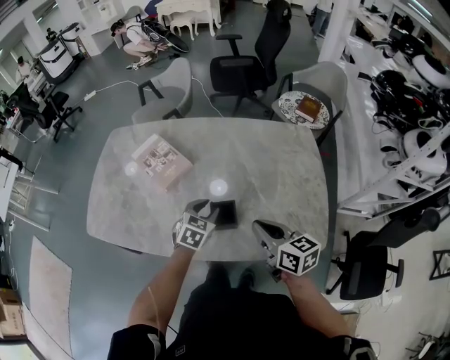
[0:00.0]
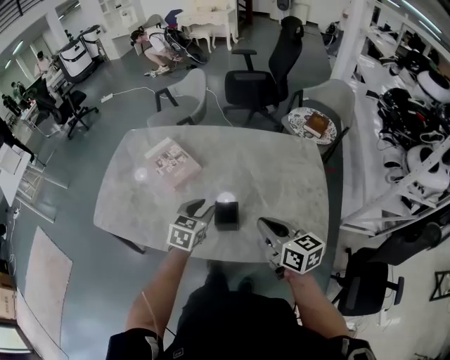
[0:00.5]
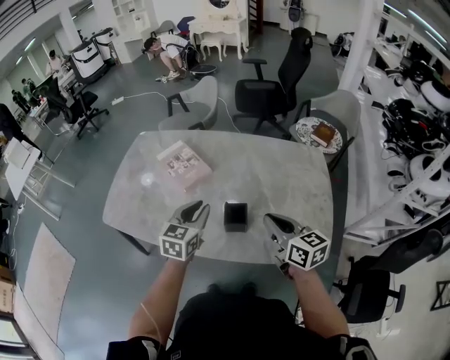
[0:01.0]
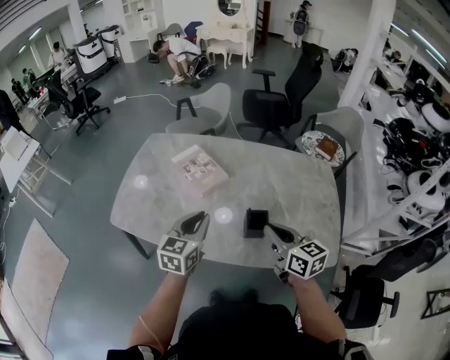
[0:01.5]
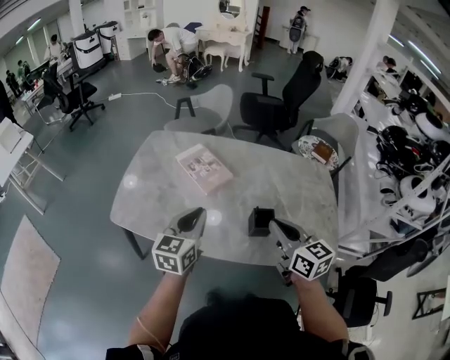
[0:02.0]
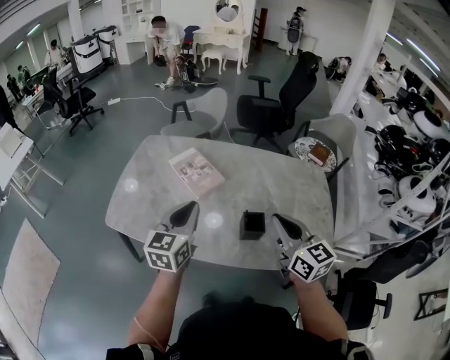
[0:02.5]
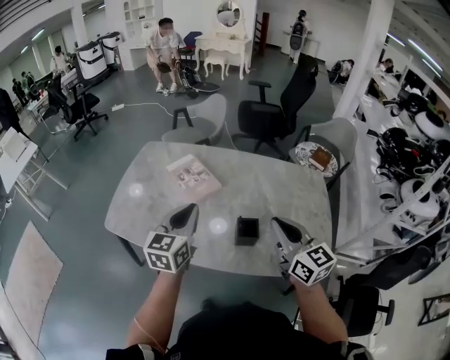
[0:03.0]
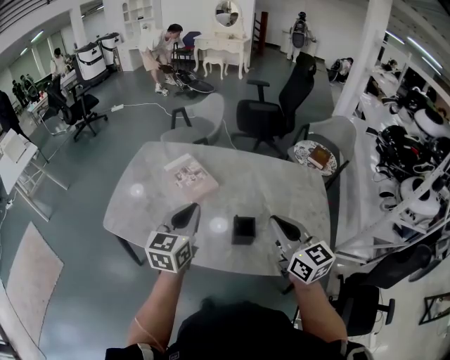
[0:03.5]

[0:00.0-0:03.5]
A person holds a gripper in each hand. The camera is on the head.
0:00.0 to 0:02.0: The left gripper travels to the left and upward by roughly 30 cm, angles its fingers upward, by approximately 30 degrees, and closes its fingers. Meanwhile the right gripper moves to the left and upward, approximately 20 cm.
0:02.0 to 0:03.5: Both grippers travel together to the right, about 10 cm.

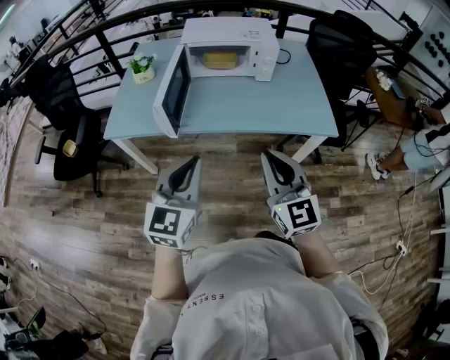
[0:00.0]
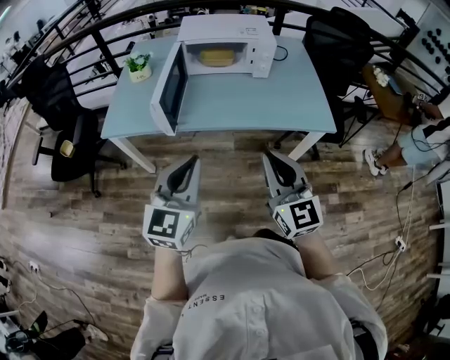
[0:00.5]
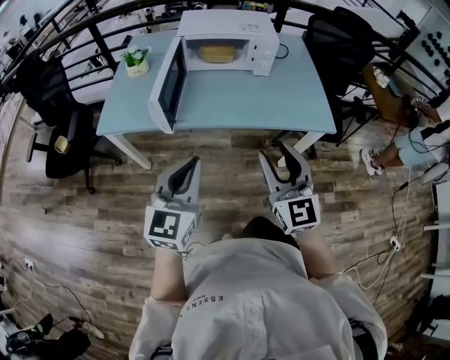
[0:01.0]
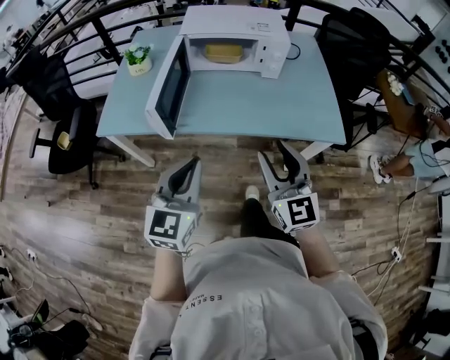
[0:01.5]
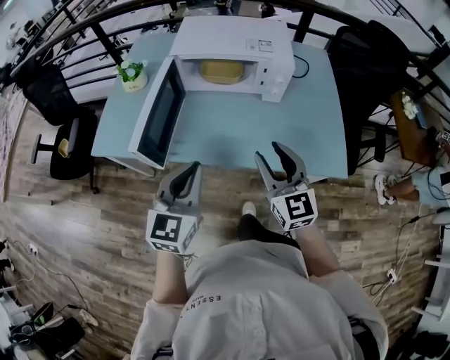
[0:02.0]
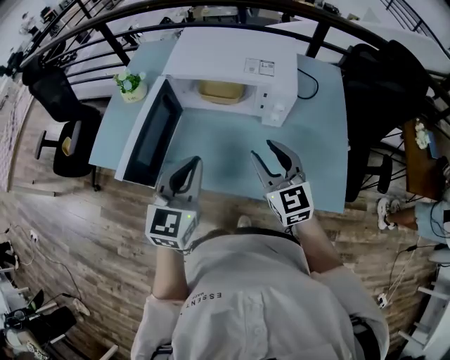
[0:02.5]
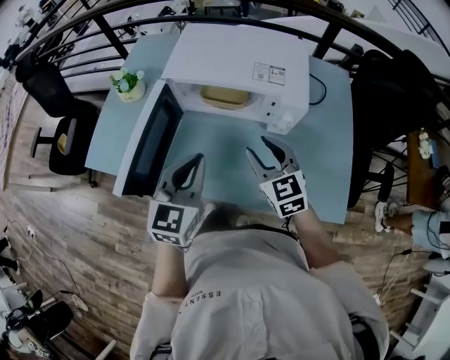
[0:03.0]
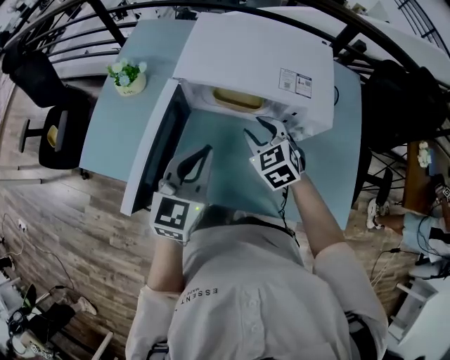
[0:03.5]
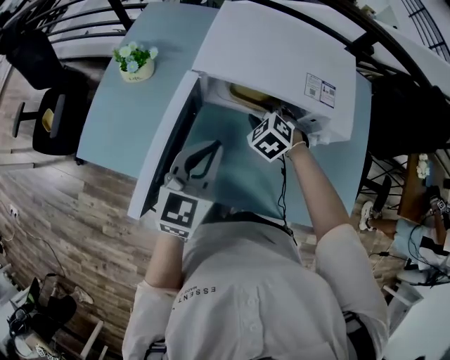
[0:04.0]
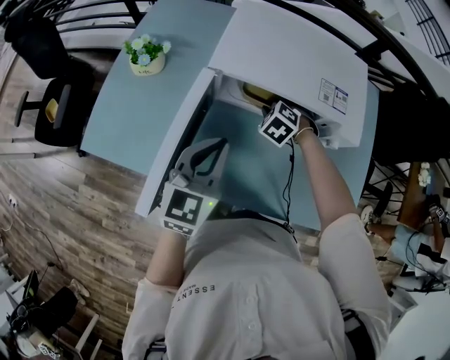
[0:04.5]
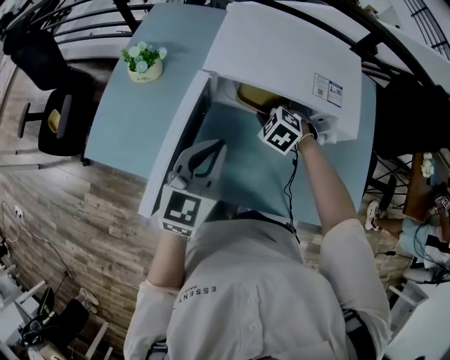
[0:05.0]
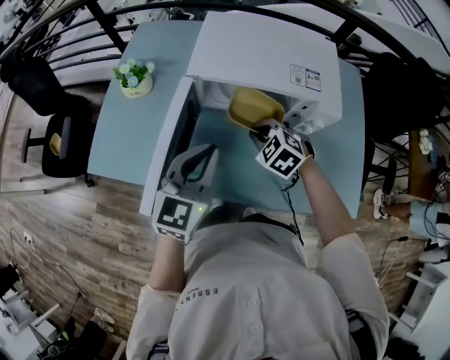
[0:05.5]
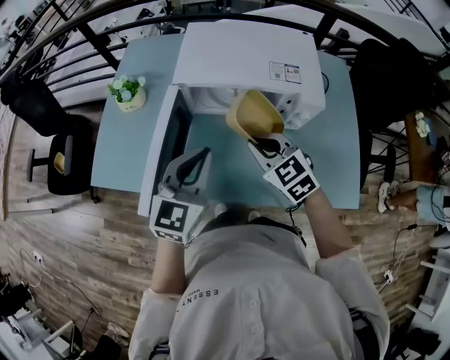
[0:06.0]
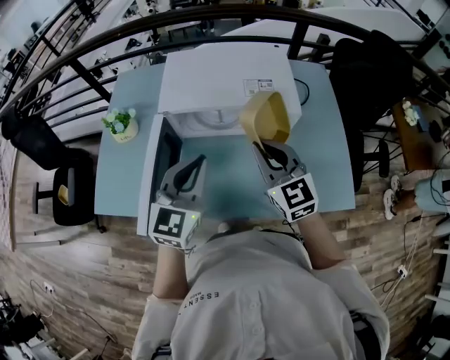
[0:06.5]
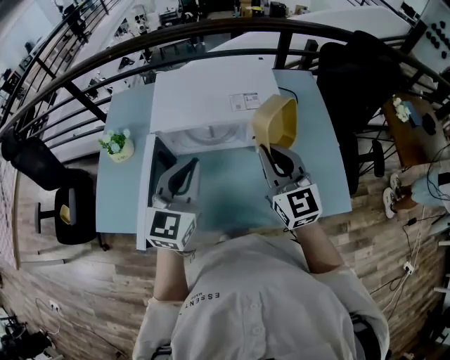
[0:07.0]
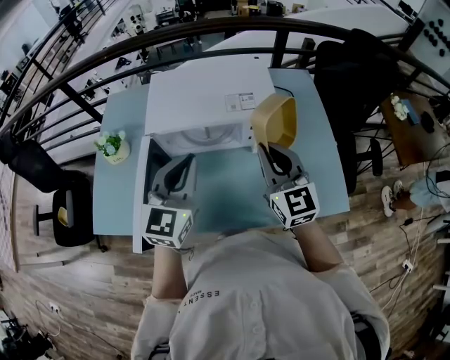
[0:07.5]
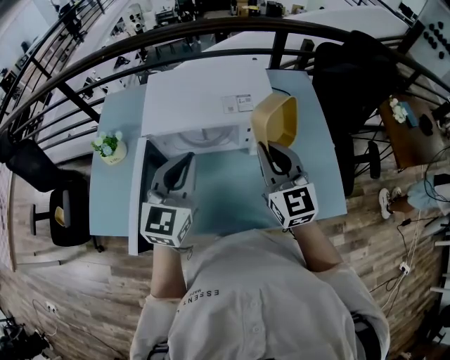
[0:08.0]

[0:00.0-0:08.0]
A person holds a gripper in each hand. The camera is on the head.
0:00.0 to 0:02.0: Both grippers move forward, some 20 cm. The right gripper opens its fingers.
0:02.0 to 0:04.0: The left gripper heads forward, covering approximately 25 cm. Meanwhile the right gripper shifts some 40 cm forward and downward, and tilts its fingers about 50 degrees downward.
0:04.0 to 0:06.0: The right gripper goes about 20 cm backward and upward, rotates some 30 degrees, and closes. The left gripper shifts by about 5 cm.
0:06.0 to 0:08.0: The right gripper shifts about 15 cm to the right and upward, and tips its fingers upward by roughly 30 degrees. Meanwhile the left gripper goes about 10 cm to the right, forward and upward.

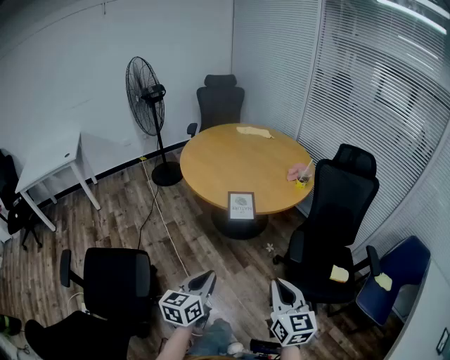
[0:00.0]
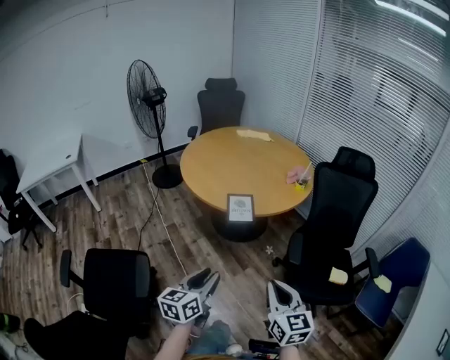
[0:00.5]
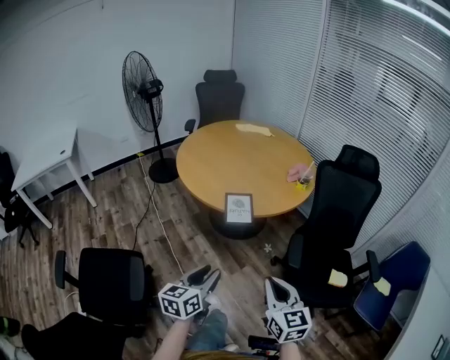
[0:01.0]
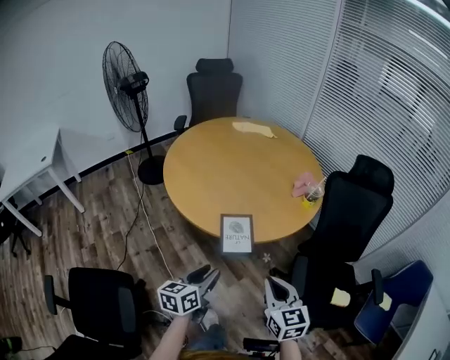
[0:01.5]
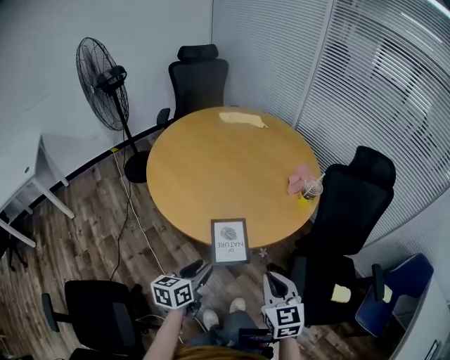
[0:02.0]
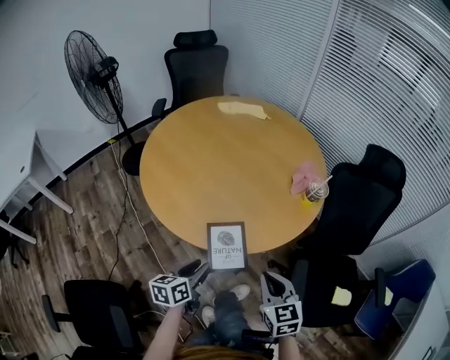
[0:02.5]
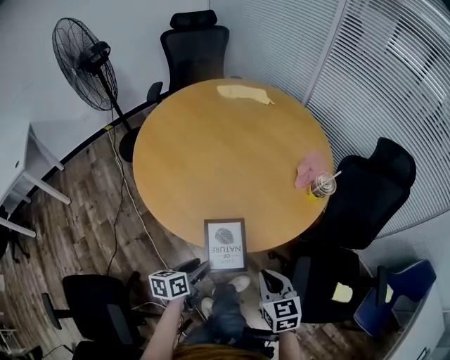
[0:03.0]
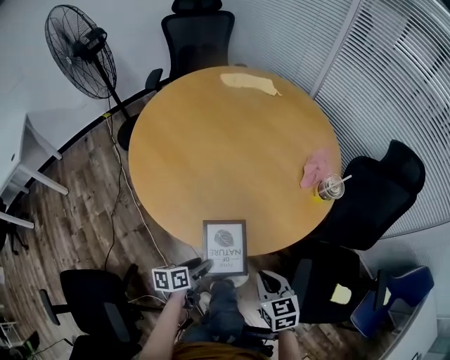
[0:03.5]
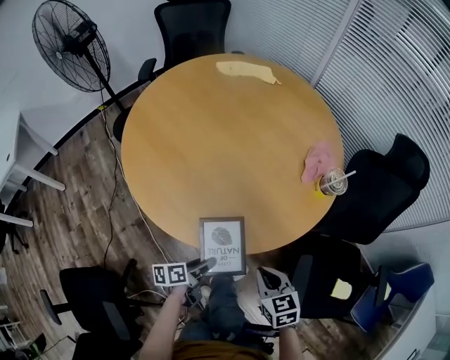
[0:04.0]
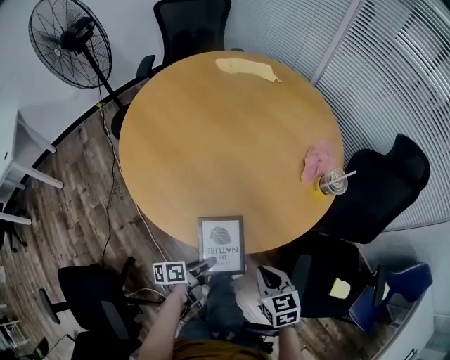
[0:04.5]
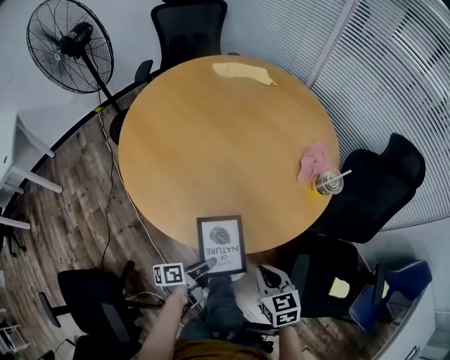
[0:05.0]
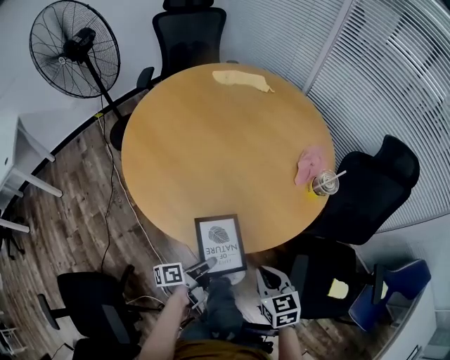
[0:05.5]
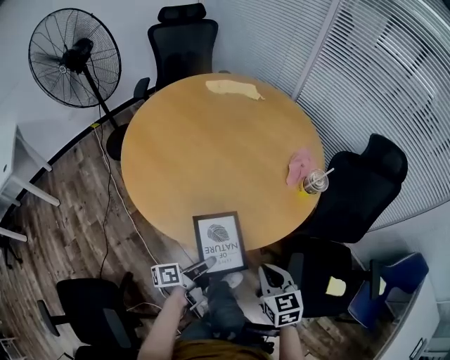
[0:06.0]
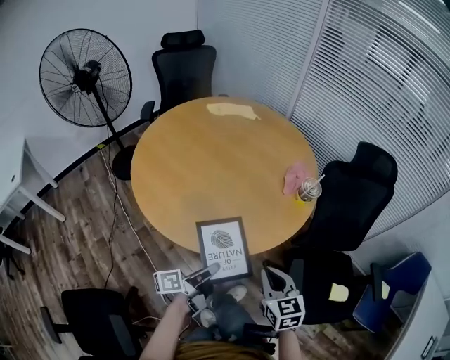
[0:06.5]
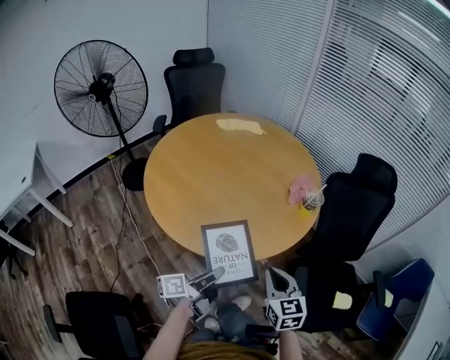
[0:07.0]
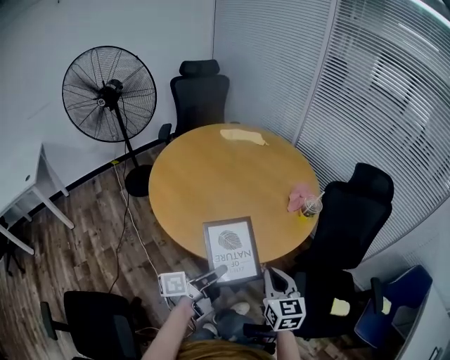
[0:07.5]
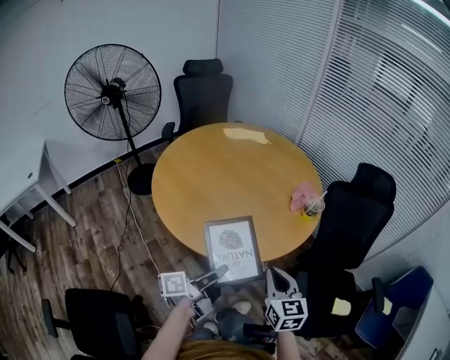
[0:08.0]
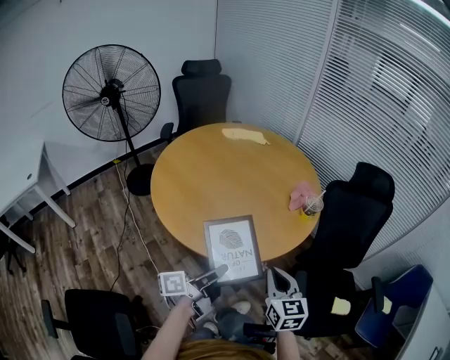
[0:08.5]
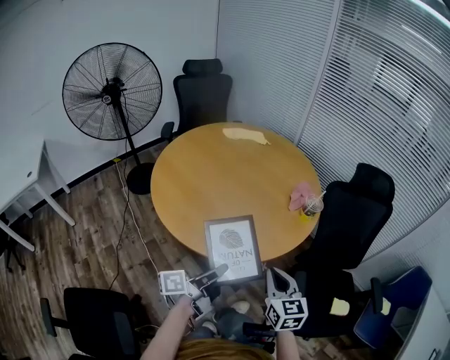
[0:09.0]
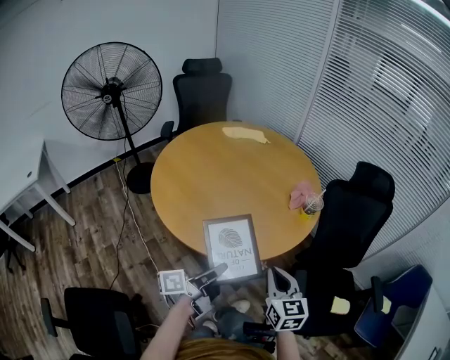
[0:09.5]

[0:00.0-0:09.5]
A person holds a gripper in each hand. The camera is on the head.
0:00.0 to 0:02.0: The grippers both shift forward by some 35 cm. The left gripper opens up.
0:02.0 to 0:04.0: The grippers both shift downward and forward by approximately 20 cm. The right gripper rotates some 20 degrees, while the left gripper turns by about 40 degrees.
0:04.0 to 0:05.5: The left gripper closes its fingers.
0:05.5 to 0:07.5: The right gripper heads upward, covering roughly 15 cm, and rotates approximately 20 degrees; the left gripper moves upward, about 20 cm, and changes its angle by approximately 30 degrees.
0:07.5 to 0:09.5: Neither gripper changes place.

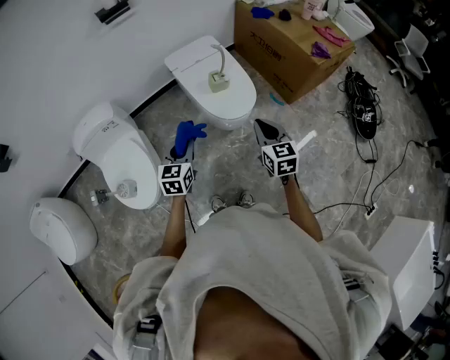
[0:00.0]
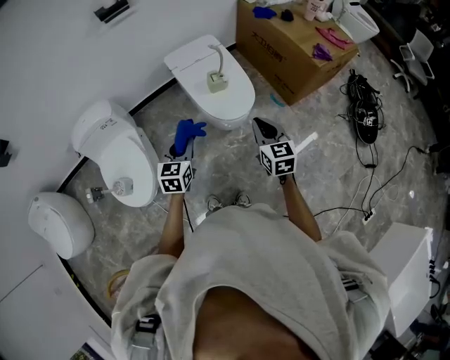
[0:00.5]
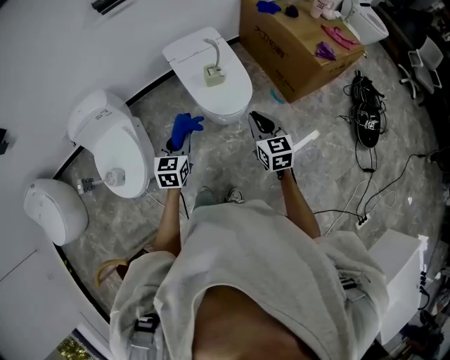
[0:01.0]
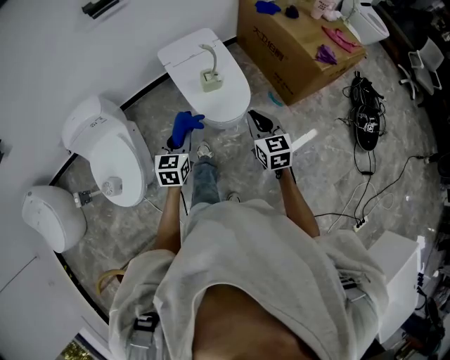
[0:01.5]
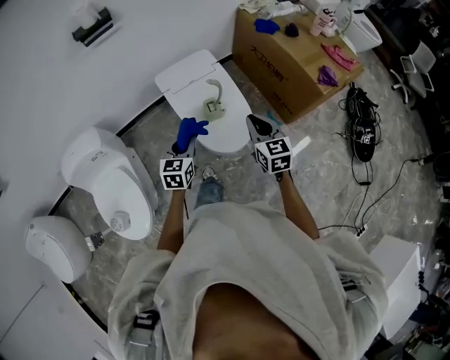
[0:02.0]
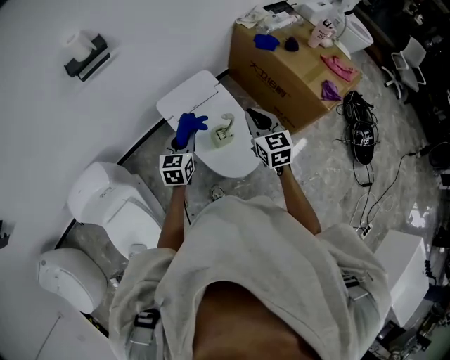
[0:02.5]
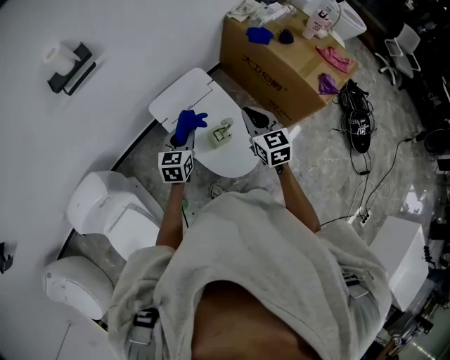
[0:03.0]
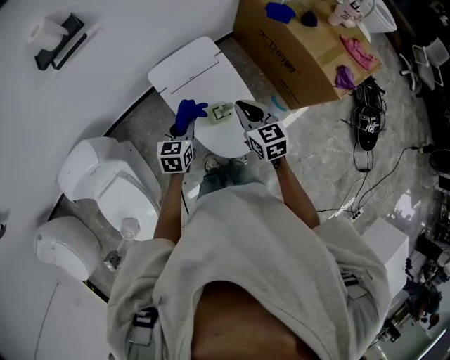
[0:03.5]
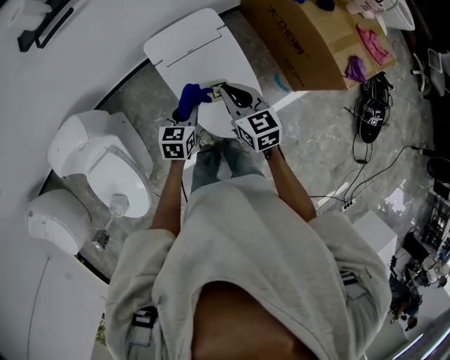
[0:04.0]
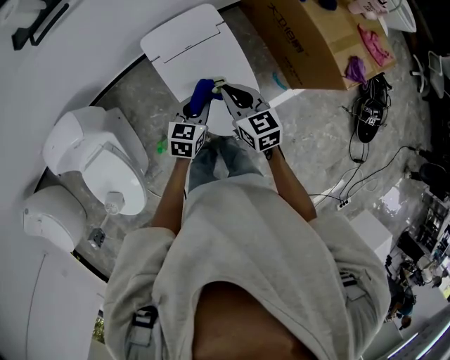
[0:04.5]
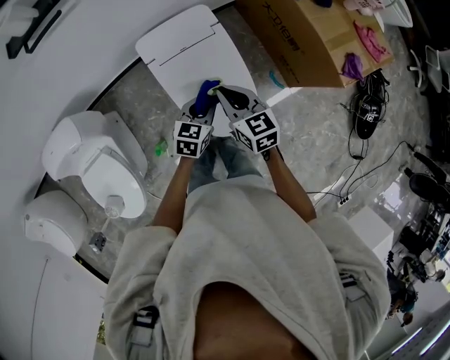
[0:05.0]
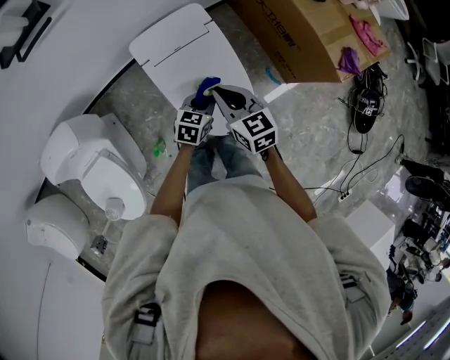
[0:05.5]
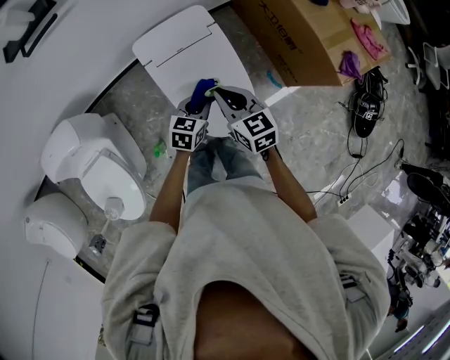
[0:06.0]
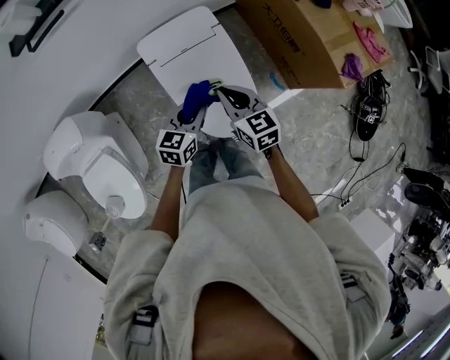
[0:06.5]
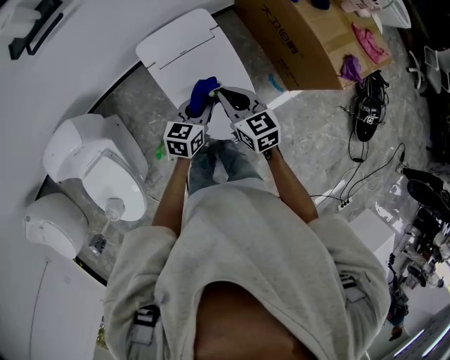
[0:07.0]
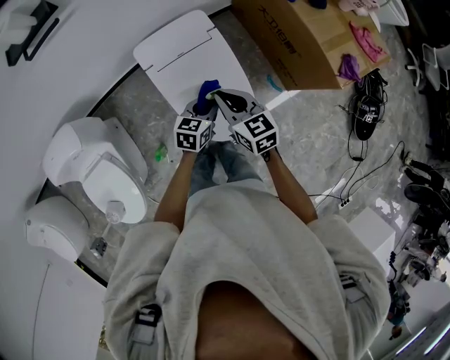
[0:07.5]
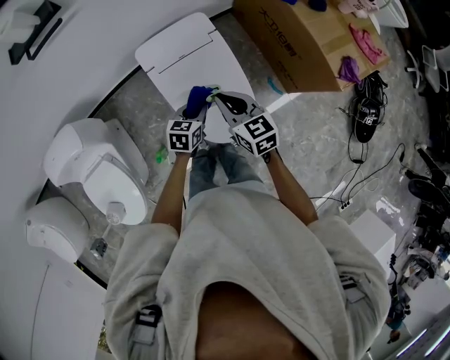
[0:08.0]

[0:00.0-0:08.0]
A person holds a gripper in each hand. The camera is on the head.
0:00.0 to 0:02.0: The grippers both shift forward by about 20 cm.
0:02.0 to 0:04.0: The right gripper is displaced forward and to the left by about 20 cm, while the left gripper goes some 20 cm forward and downward.
0:04.0 to 0:06.0: The left gripper heads to the right, covering approximately 10 cm.
0:06.0 to 0:08.0: The left gripper reaches approximately 5 cm upward, then returns.
